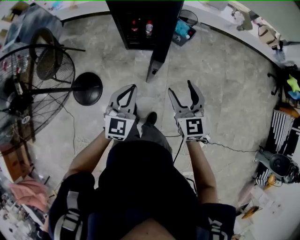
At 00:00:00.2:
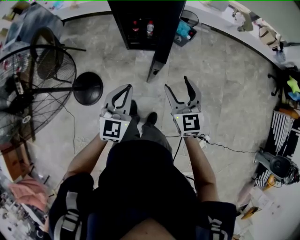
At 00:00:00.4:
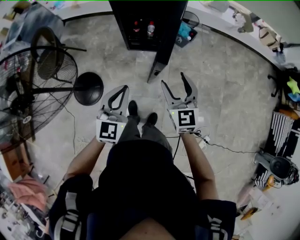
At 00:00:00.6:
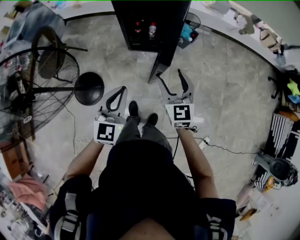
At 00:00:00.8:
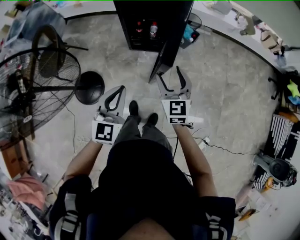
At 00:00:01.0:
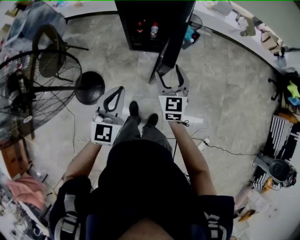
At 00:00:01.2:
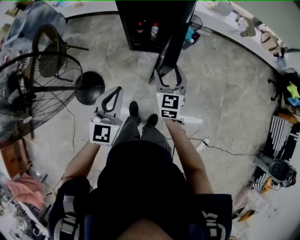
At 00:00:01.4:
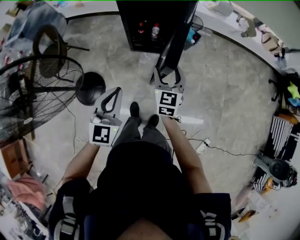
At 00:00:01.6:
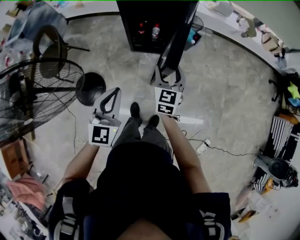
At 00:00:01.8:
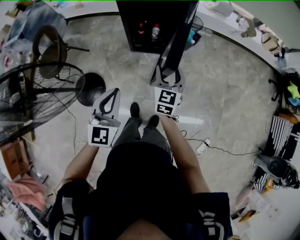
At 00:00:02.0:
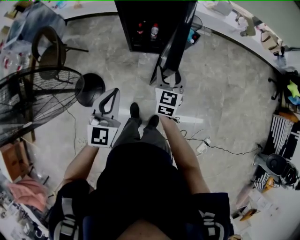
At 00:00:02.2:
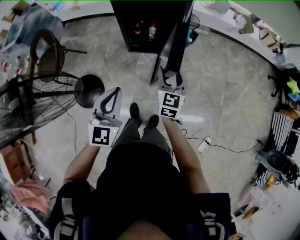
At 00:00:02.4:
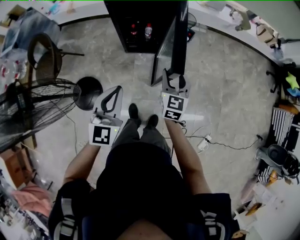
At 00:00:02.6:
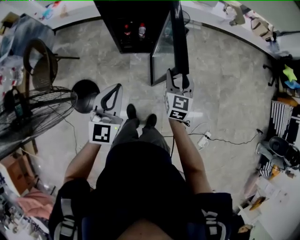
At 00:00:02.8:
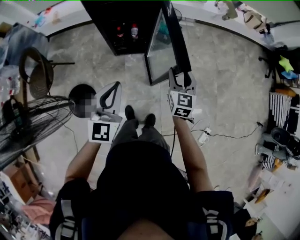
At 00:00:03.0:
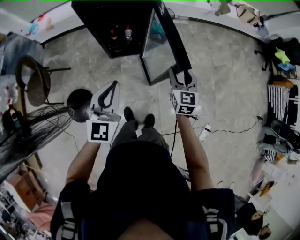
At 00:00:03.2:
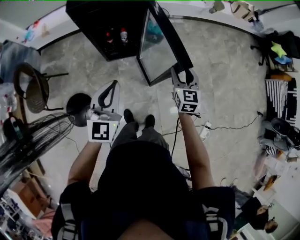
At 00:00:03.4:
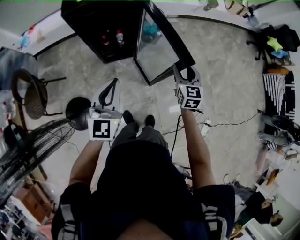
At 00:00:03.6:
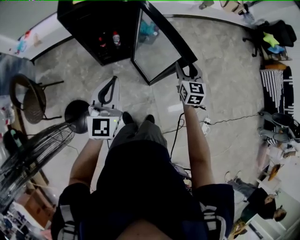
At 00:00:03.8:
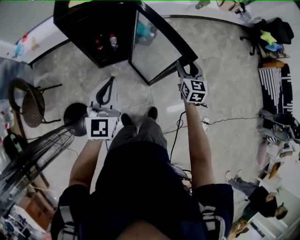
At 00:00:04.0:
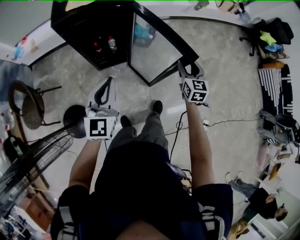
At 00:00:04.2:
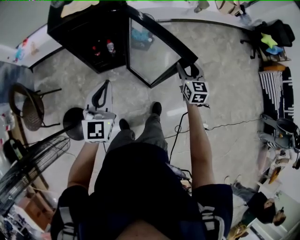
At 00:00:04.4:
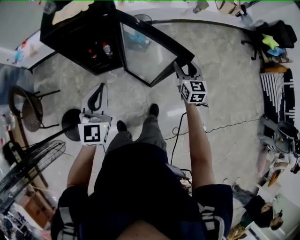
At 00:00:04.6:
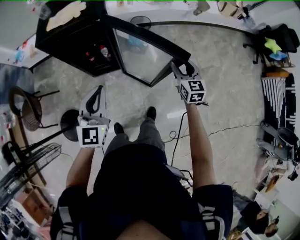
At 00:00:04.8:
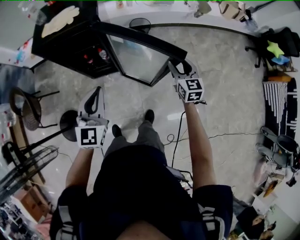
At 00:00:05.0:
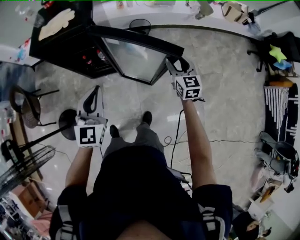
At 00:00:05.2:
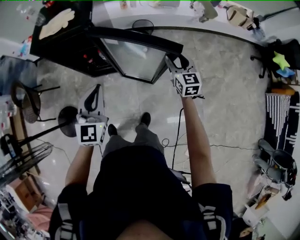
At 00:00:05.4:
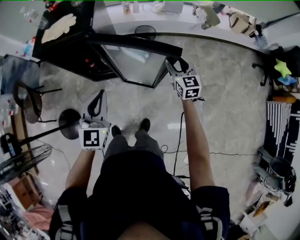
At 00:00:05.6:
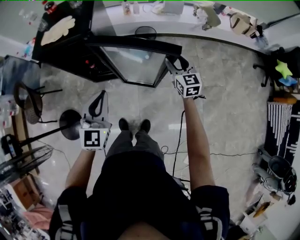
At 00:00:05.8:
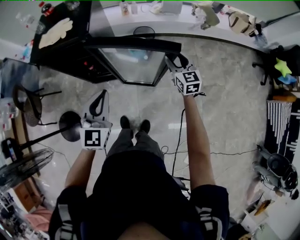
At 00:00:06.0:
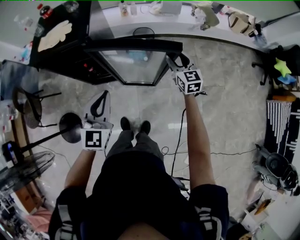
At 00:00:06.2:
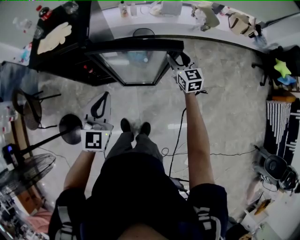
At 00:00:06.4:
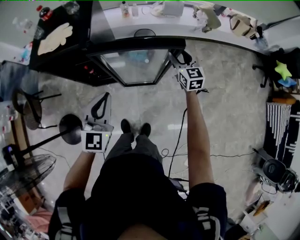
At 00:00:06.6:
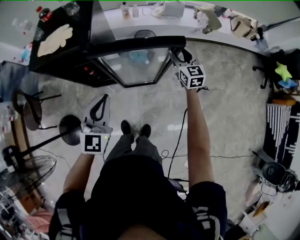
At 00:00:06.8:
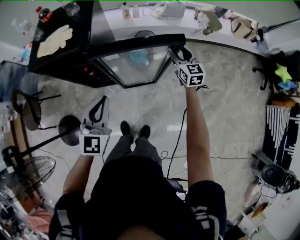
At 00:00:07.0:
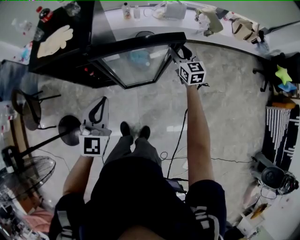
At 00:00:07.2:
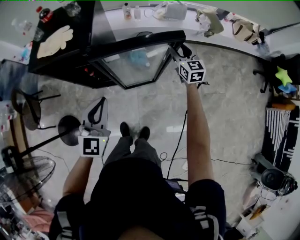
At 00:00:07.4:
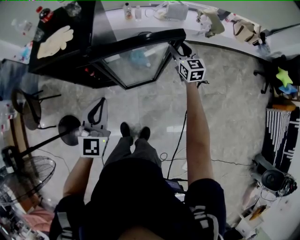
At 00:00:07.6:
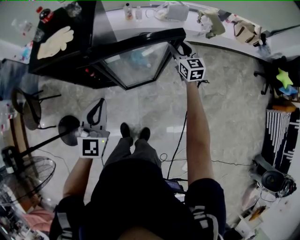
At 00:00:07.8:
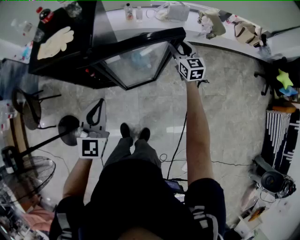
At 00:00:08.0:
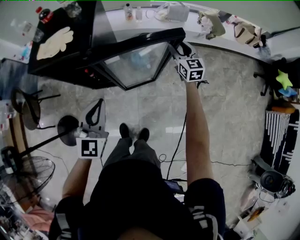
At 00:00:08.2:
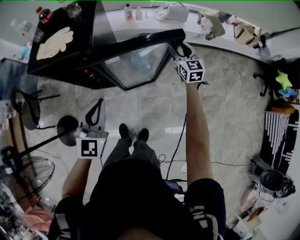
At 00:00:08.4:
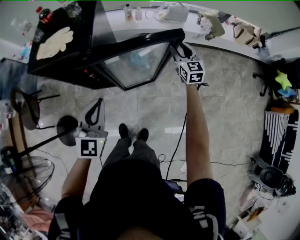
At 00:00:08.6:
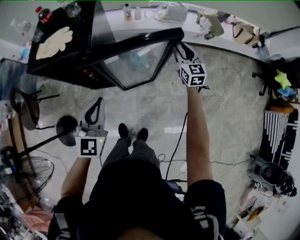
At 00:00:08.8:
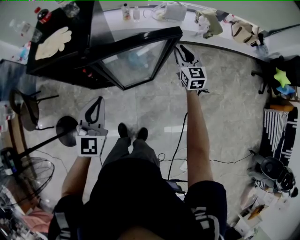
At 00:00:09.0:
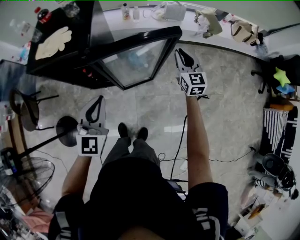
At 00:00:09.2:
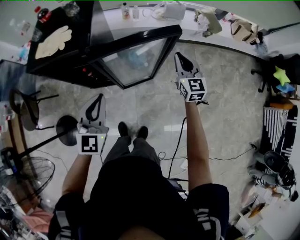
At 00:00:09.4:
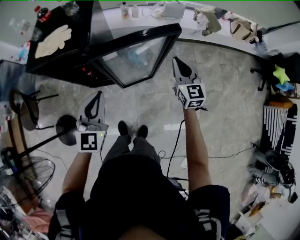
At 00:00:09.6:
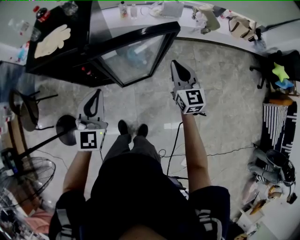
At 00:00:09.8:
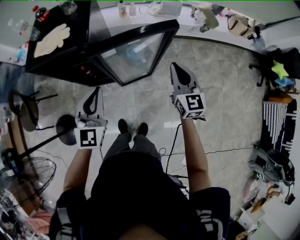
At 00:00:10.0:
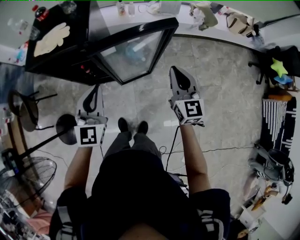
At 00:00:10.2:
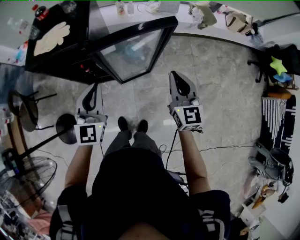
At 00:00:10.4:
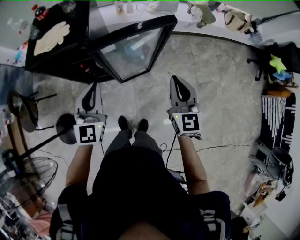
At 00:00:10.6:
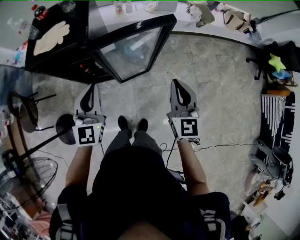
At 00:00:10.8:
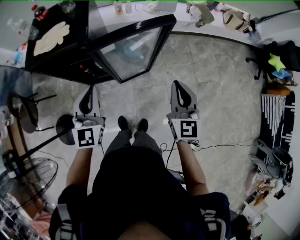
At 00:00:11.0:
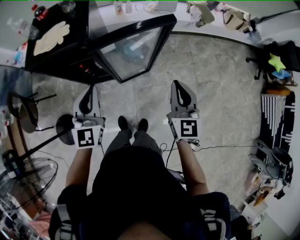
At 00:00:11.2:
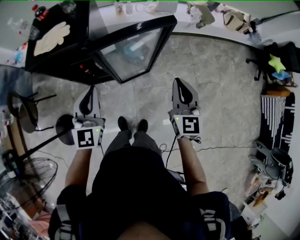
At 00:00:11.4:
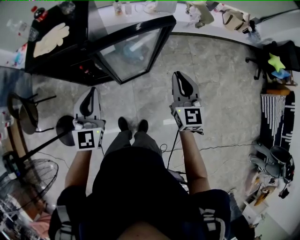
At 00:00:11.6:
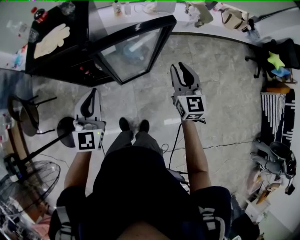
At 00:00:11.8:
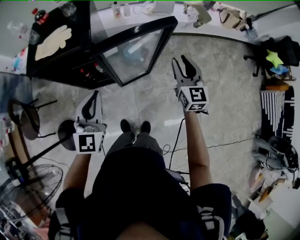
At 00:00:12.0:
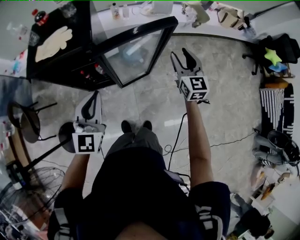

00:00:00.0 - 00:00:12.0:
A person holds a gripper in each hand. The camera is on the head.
00:00:00.0 - 00:00:01.6: The left gripper travels to the left by about 10 cm. Meanwhile the right gripper heads forward, to the left and downward, covering about 15 cm.
00:00:01.6 - 00:00:03.0: The right gripper goes roughly 15 cm to the right. Meanwhile the left gripper is displaced forward and to the right by roughly 10 cm.
00:00:03.0 - 00:00:04.4: The right gripper moves to the right and forward, some 20 cm. The left gripper goes some 15 cm forward and to the right.
00:00:04.4 - 00:00:06.0: The left gripper shifts roughly 25 cm to the right and forward. Meanwhile the right gripper is displaced forward and to the right by approximately 25 cm.
00:00:06.0 - 00:00:07.6: The right gripper moves forward, some 15 cm, while the left gripper is displaced forward by some 5 cm.
00:00:07.6 - 00:00:09.0: The right gripper heads backward, covering approximately 5 cm, and closes up.
00:00:09.0 - 00:00:10.4: The right gripper travels backward and upward by about 20 cm.
00:00:10.4 - 00:00:12.0: The right gripper moves forward, some 10 cm, and opens up.

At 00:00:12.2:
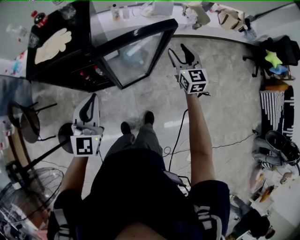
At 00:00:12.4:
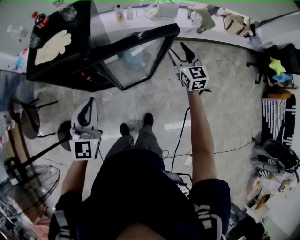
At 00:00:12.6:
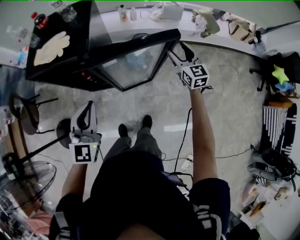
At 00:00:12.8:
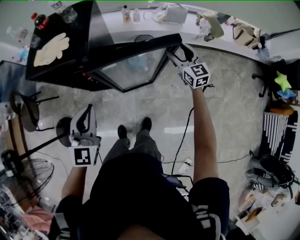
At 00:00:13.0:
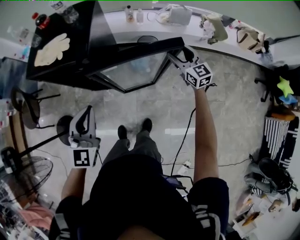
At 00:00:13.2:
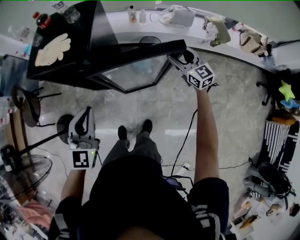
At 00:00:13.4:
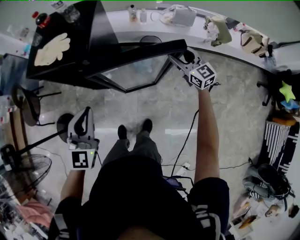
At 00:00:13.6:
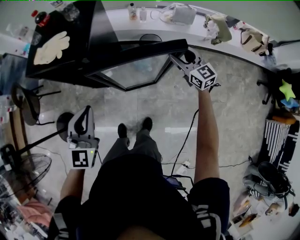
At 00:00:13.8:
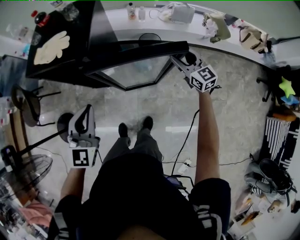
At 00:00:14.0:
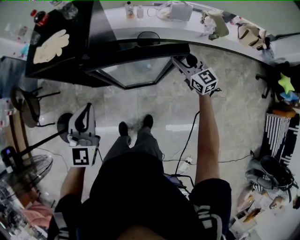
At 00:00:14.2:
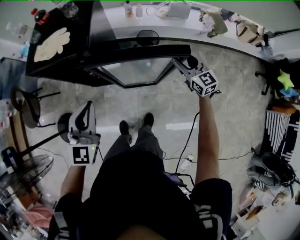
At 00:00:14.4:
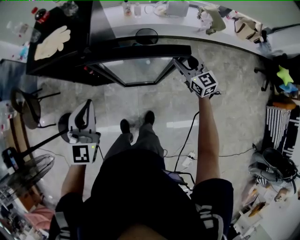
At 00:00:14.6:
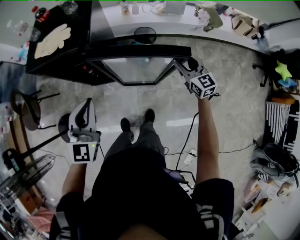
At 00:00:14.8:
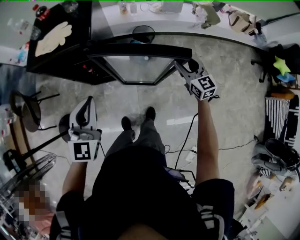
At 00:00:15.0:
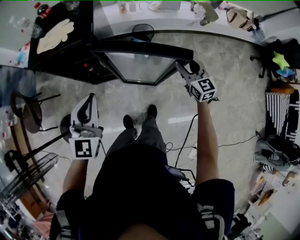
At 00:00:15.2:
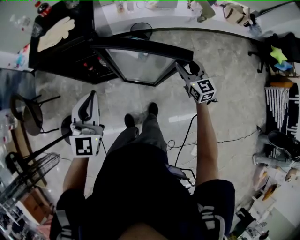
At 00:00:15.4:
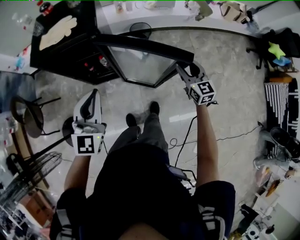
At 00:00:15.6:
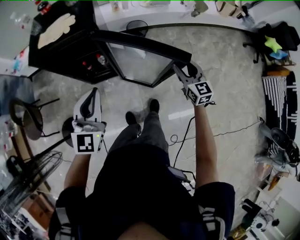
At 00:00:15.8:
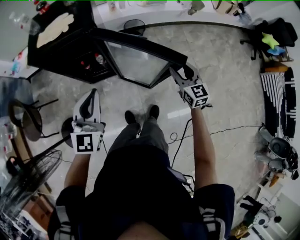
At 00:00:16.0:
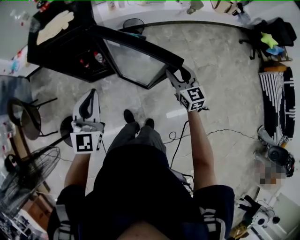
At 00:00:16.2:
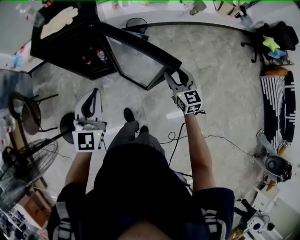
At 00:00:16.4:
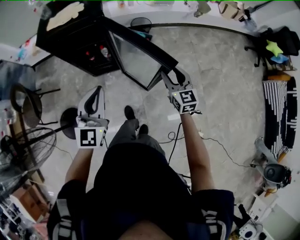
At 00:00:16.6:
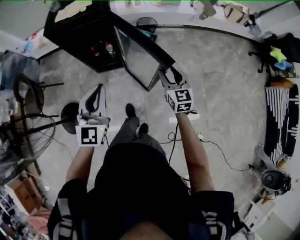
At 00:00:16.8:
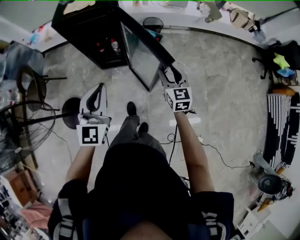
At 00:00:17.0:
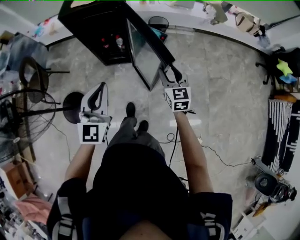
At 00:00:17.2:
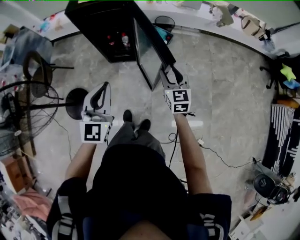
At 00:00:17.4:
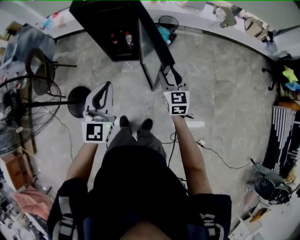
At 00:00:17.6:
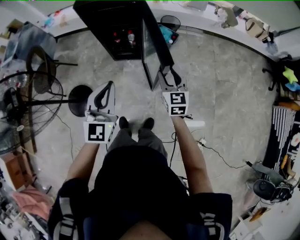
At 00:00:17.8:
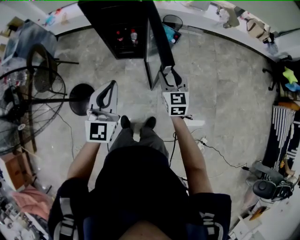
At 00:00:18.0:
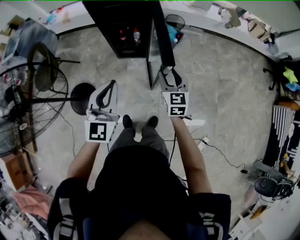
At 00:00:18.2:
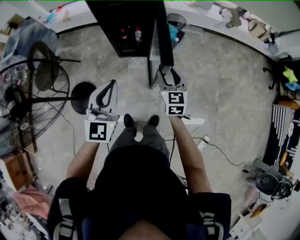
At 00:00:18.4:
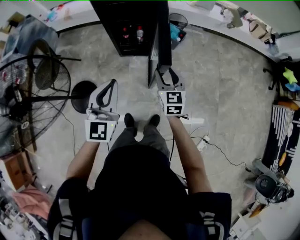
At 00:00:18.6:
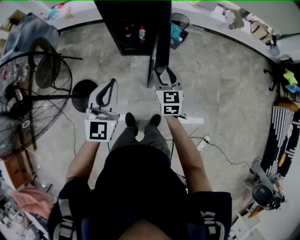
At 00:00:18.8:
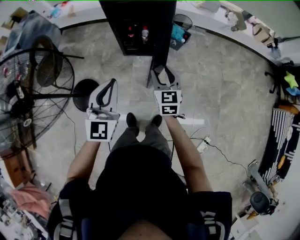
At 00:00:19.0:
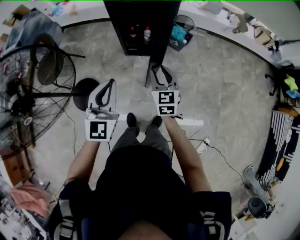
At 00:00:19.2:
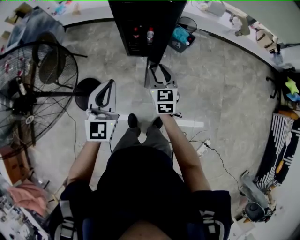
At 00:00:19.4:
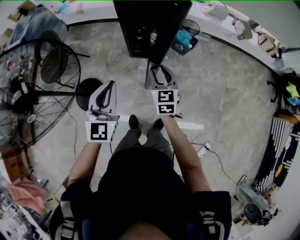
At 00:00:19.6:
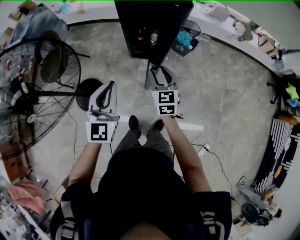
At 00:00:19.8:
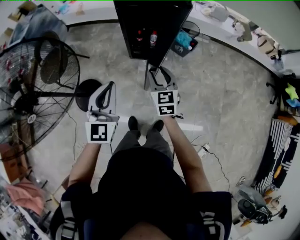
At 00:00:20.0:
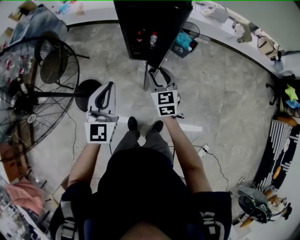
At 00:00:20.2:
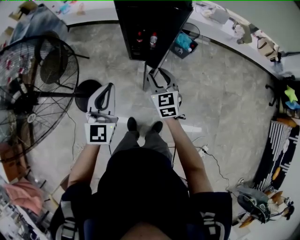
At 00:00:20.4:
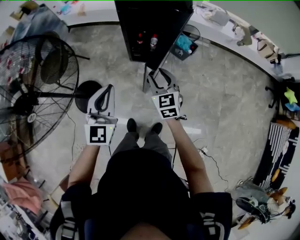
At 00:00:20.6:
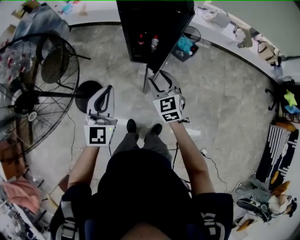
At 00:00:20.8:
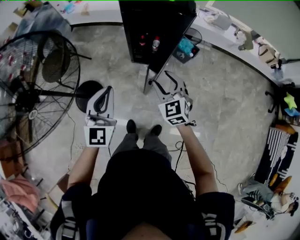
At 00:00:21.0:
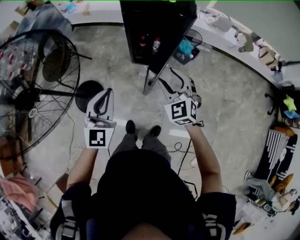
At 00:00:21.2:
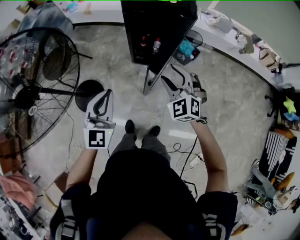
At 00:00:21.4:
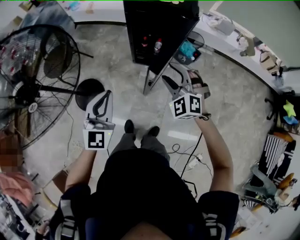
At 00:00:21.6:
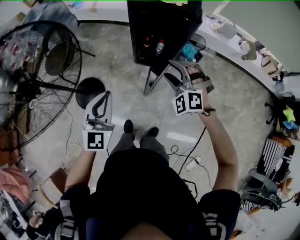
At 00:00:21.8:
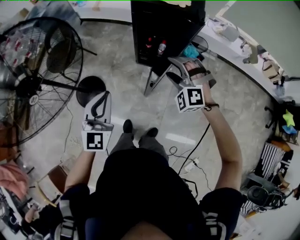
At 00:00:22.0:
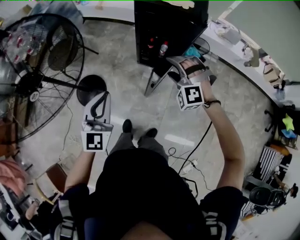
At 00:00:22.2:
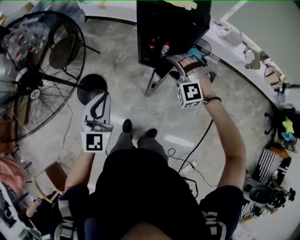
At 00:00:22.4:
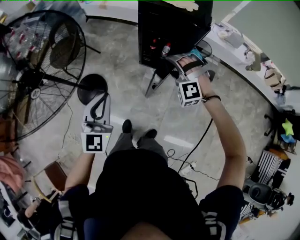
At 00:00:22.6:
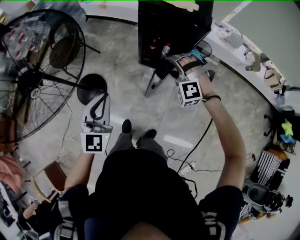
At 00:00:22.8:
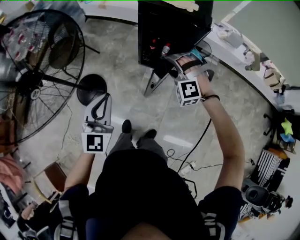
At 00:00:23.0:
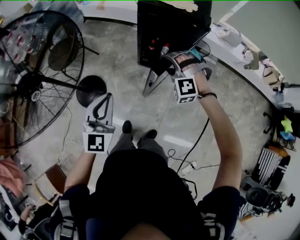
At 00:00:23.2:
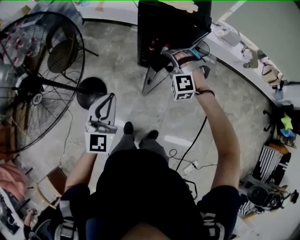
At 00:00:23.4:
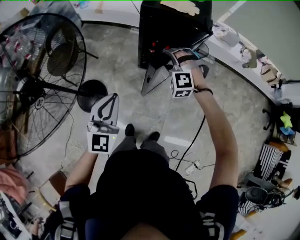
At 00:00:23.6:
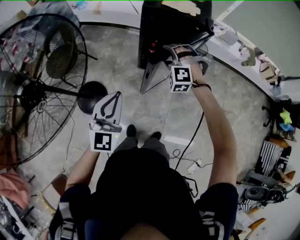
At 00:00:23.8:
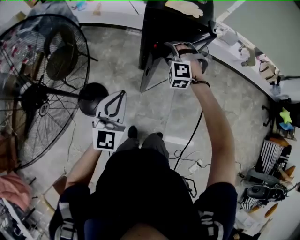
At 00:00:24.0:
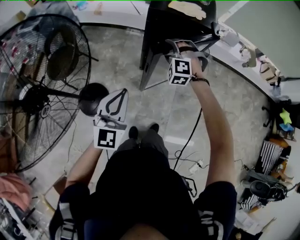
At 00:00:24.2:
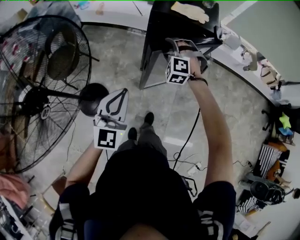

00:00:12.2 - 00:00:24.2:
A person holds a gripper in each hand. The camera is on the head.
00:00:12.2 - 00:00:13.8: The right gripper goes approximately 10 cm forward and downward, and changes its angle by approximately 30 degrees. Meanwhile the left gripper shifts by roughly 5 cm.
00:00:13.8 - 00:00:15.2: The right gripper is displaced backward by roughly 20 cm, and turns by roughly 20 degrees; the left gripper goes about 10 cm backward and to the left.
00:00:15.2 - 00:00:16.6: The left gripper moves backward, about 15 cm; the right gripper is displaced backward and to the left by some 20 cm.
00:00:16.6 - 00:00:18.2: The left gripper travels to the left and backward by roughly 15 cm, while the right gripper travels to the left by some 20 cm.
00:00:18.2 - 00:00:19.8: Both grippers travel together to the left, about 15 cm.
00:00:19.8 - 00:00:21.2: The right gripper moves upward, approximately 10 cm, and rotates around the line of its fingers by approximately 50 degrees, counterclockwise from behind.
00:00:21.2 - 00:00:22.6: The right gripper moves forward, about 5 cm, and twists about 50 degrees counterclockwise, seen from behind.
00:00:22.6 - 00:00:24.2: The right gripper travels forward and to the left by about 20 cm, and swivels some 20 degrees. The left gripper goes approximately 10 cm forward.
